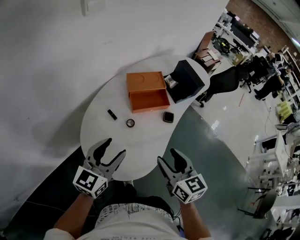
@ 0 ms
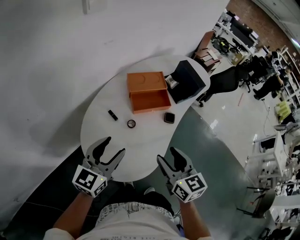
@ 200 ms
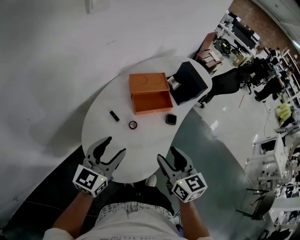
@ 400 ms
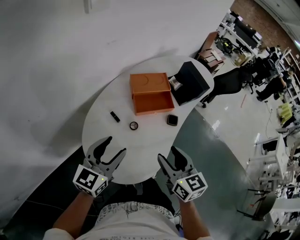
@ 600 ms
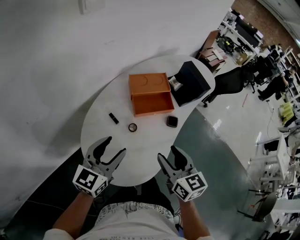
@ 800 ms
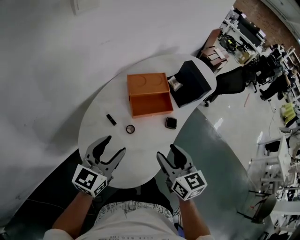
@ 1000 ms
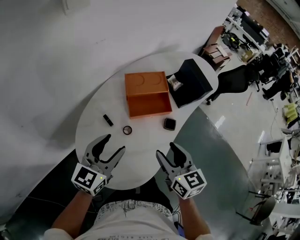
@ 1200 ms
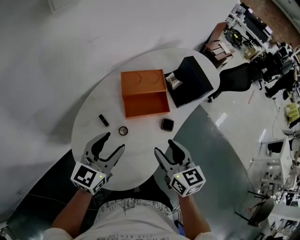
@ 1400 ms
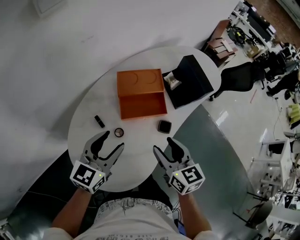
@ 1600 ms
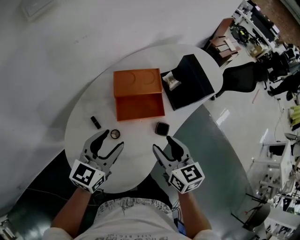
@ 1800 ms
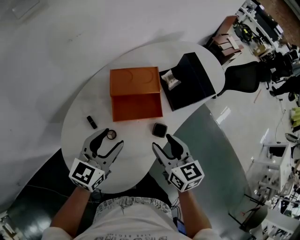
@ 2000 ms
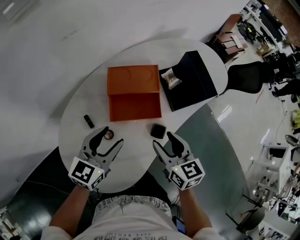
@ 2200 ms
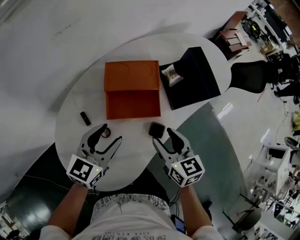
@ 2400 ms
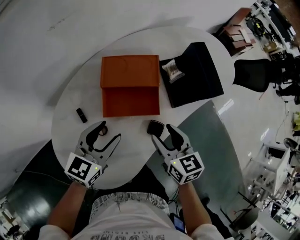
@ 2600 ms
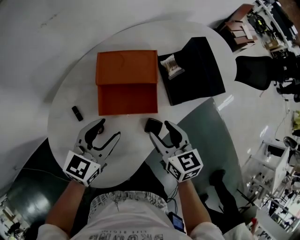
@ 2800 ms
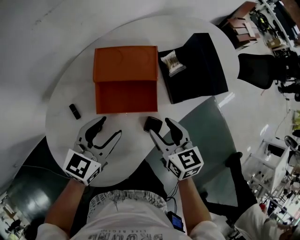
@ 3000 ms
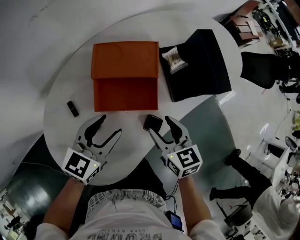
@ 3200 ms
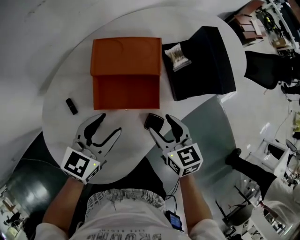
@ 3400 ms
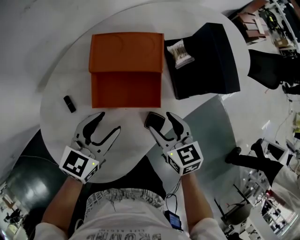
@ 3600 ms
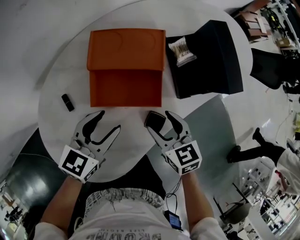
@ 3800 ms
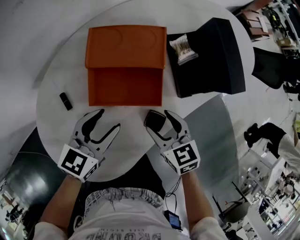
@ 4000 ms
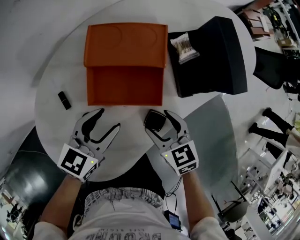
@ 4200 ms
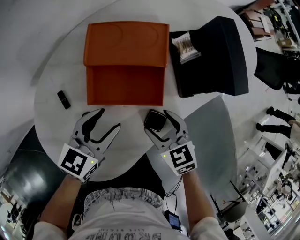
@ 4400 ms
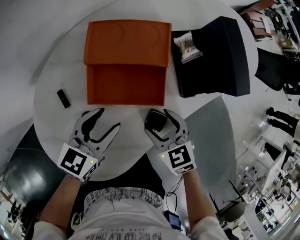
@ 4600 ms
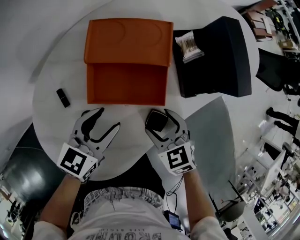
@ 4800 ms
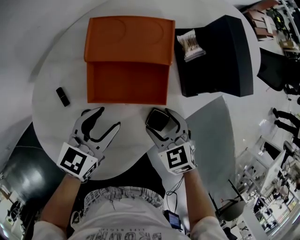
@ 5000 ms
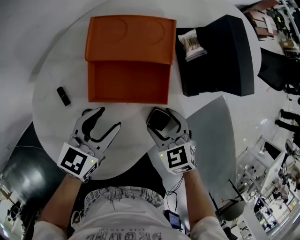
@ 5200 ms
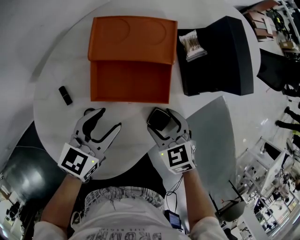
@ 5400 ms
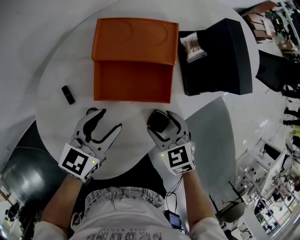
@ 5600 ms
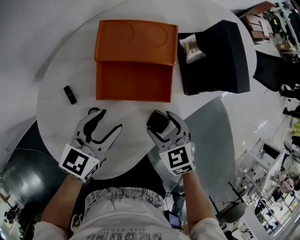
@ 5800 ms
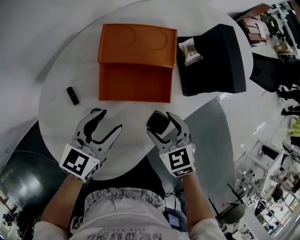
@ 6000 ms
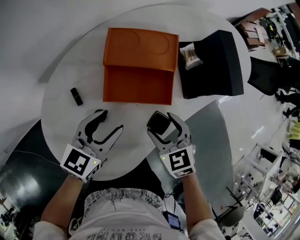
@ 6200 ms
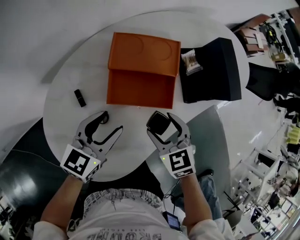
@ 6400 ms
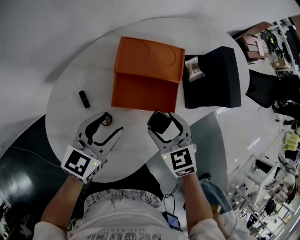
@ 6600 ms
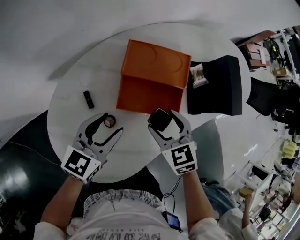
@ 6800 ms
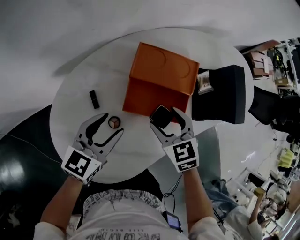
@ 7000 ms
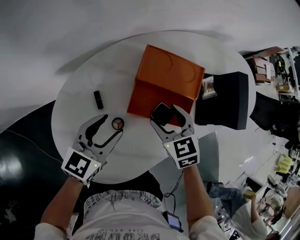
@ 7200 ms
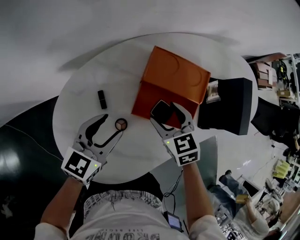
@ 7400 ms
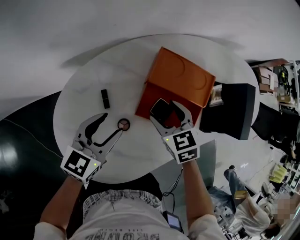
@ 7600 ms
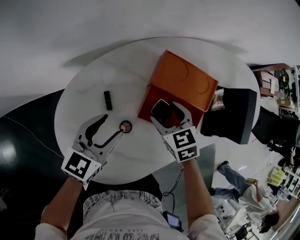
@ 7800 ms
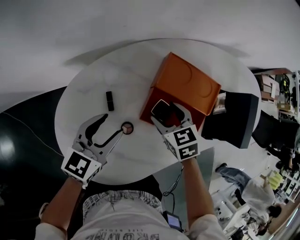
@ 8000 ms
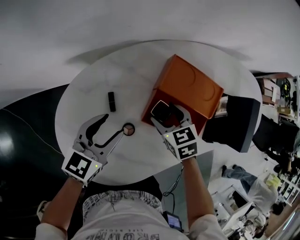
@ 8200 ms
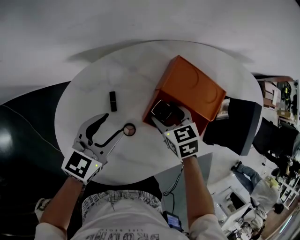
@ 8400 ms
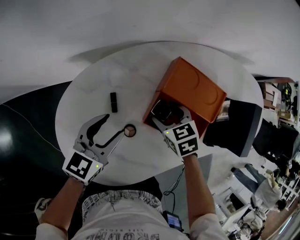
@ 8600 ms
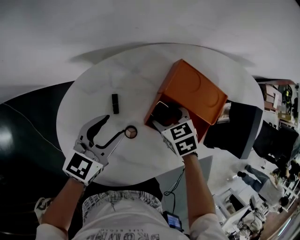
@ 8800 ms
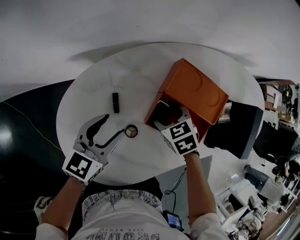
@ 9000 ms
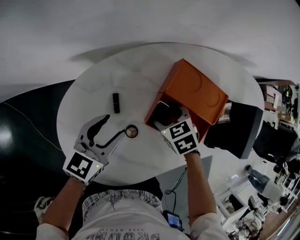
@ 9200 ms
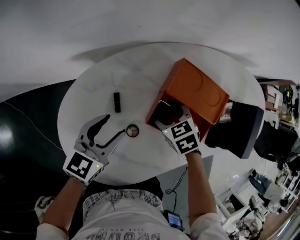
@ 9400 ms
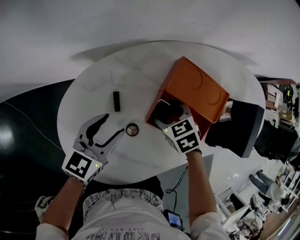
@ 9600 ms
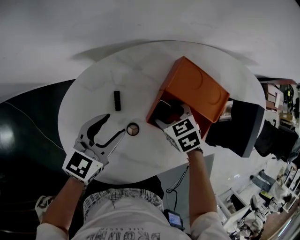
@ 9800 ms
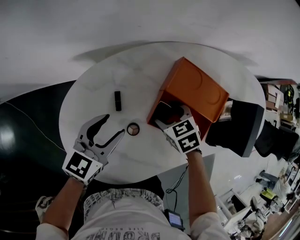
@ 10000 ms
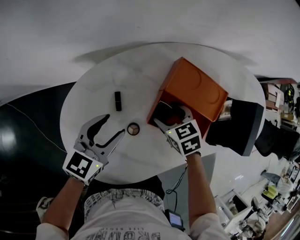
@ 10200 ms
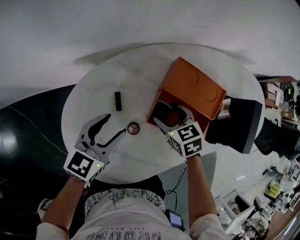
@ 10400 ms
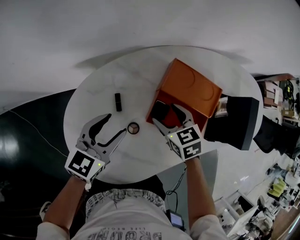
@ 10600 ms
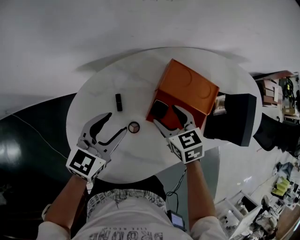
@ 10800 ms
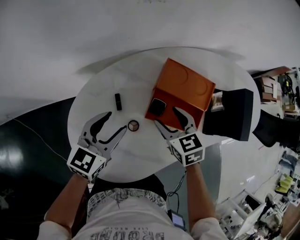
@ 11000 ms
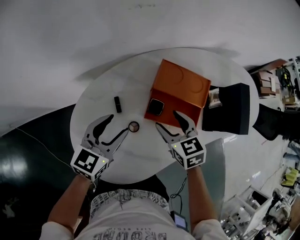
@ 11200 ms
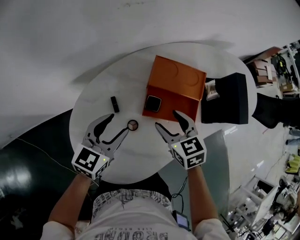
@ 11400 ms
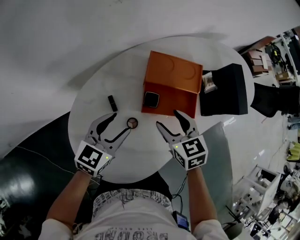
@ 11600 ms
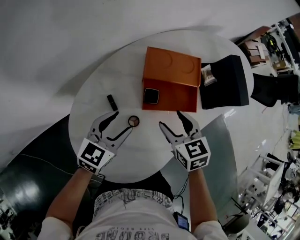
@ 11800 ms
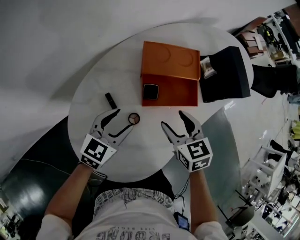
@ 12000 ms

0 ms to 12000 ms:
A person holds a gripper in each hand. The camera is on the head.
0 ms to 1600 ms: The left gripper goes about 15 cm forward and to the right; the right gripper shifts some 15 cm forward.
1600 ms to 3000 ms: The left gripper shifts about 15 cm downward, to the right and forward; the right gripper shifts some 15 cm downward, forward and to the right.
3000 ms to 4400 ms: The two grippers go about 5 cm downward. The right gripper swivels about 20 degrees.
4400 ms to 6000 ms: There are only small adjustments of the grippers.
6000 ms to 7600 ms: The left gripper travels to the left by about 10 cm. The right gripper moves forward and to the left, about 15 cm.
7600 ms to 9000 ms: The right gripper heads downward, covering about 5 cm.
9000 ms to 10400 ms: The grippers move only a little.
10400 ms to 12000 ms: The right gripper changes place by about 15 cm, and rotates some 30 degrees; the left gripper turns by about 30 degrees.

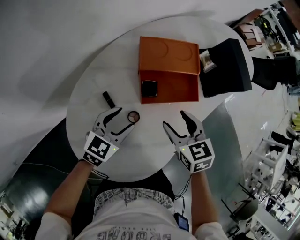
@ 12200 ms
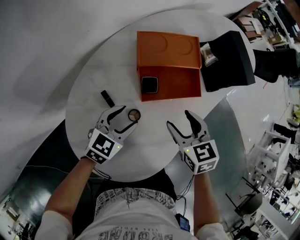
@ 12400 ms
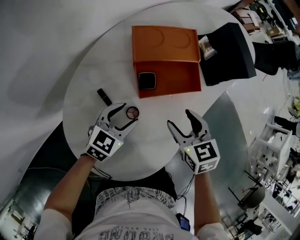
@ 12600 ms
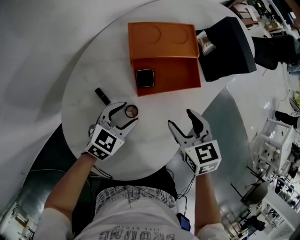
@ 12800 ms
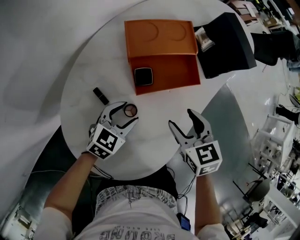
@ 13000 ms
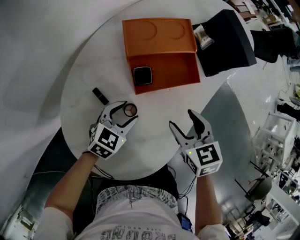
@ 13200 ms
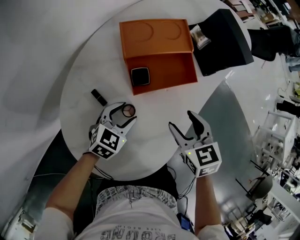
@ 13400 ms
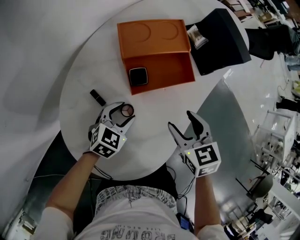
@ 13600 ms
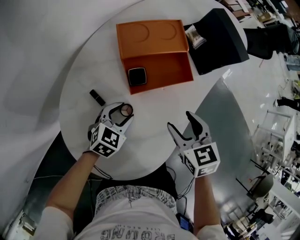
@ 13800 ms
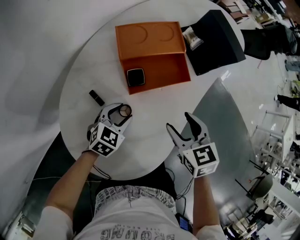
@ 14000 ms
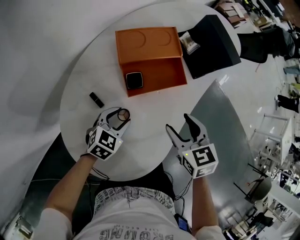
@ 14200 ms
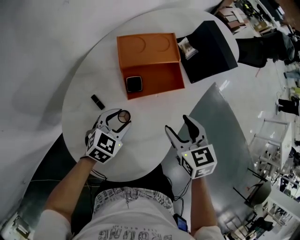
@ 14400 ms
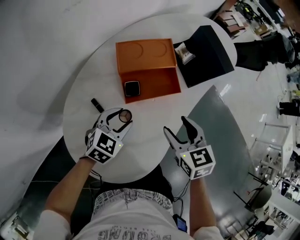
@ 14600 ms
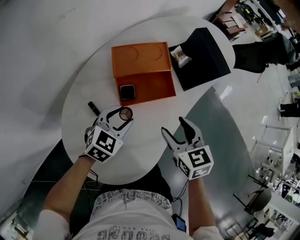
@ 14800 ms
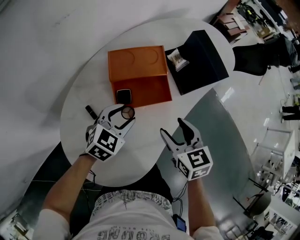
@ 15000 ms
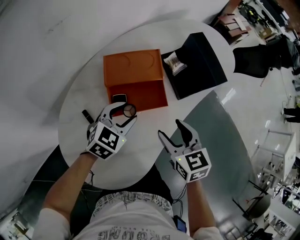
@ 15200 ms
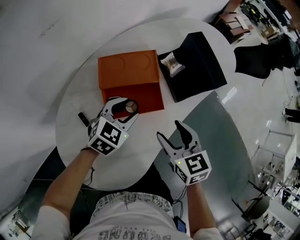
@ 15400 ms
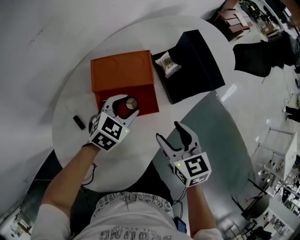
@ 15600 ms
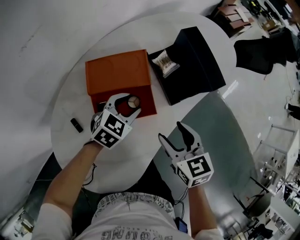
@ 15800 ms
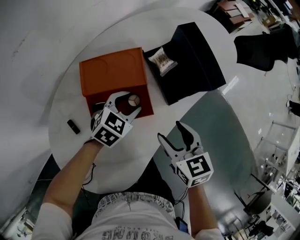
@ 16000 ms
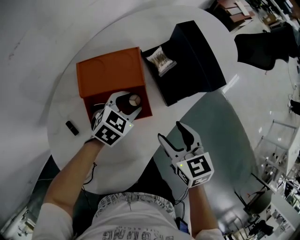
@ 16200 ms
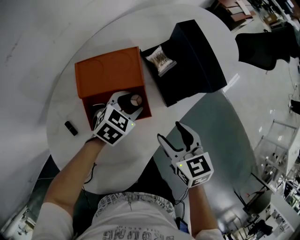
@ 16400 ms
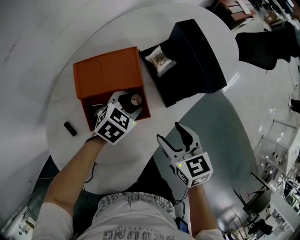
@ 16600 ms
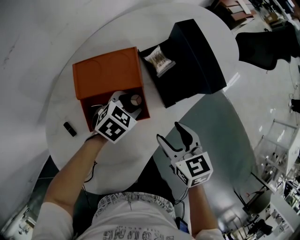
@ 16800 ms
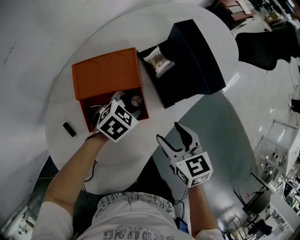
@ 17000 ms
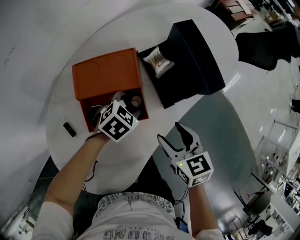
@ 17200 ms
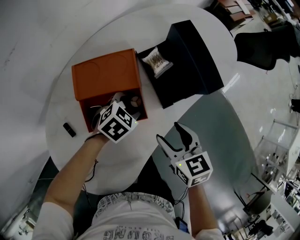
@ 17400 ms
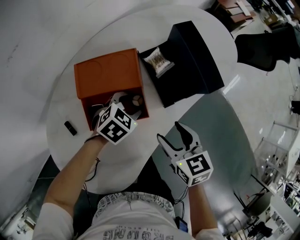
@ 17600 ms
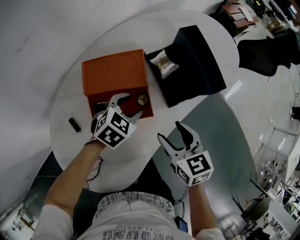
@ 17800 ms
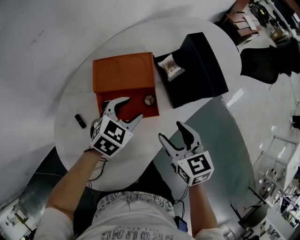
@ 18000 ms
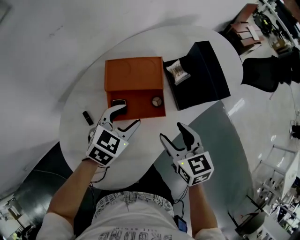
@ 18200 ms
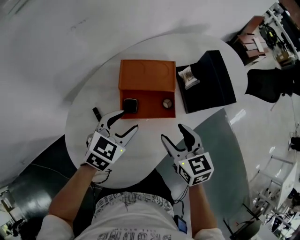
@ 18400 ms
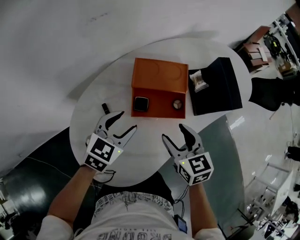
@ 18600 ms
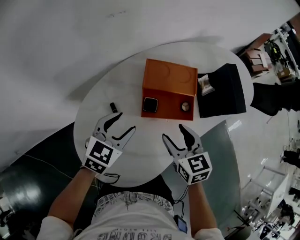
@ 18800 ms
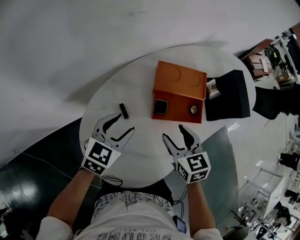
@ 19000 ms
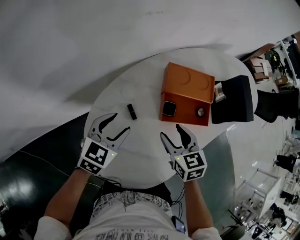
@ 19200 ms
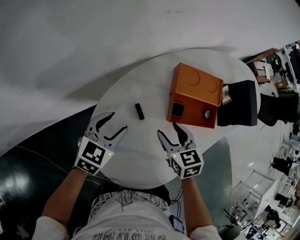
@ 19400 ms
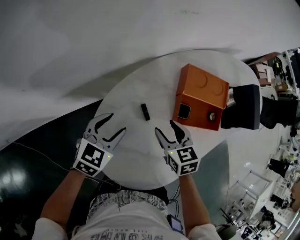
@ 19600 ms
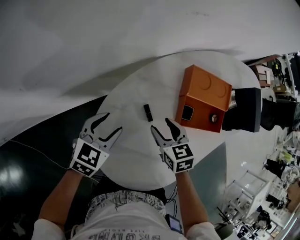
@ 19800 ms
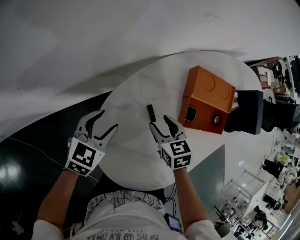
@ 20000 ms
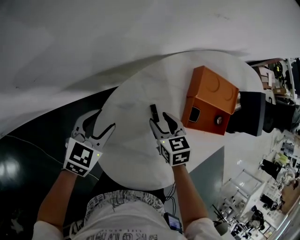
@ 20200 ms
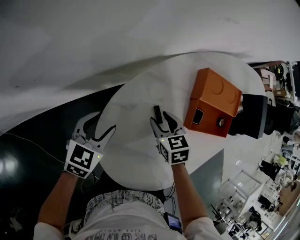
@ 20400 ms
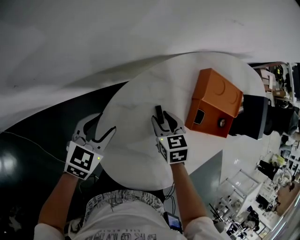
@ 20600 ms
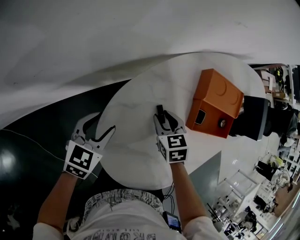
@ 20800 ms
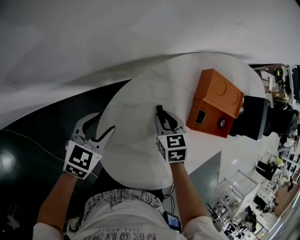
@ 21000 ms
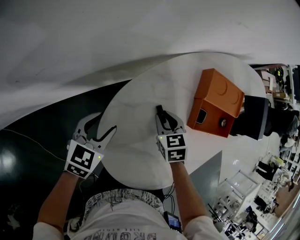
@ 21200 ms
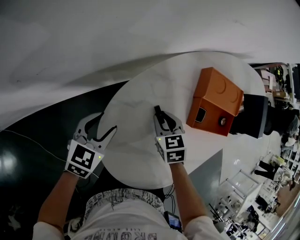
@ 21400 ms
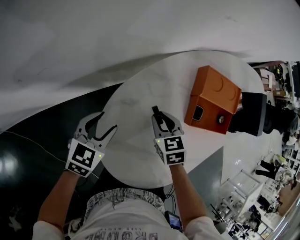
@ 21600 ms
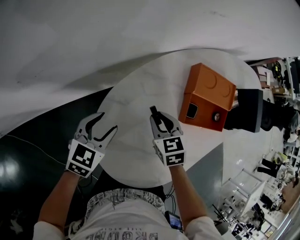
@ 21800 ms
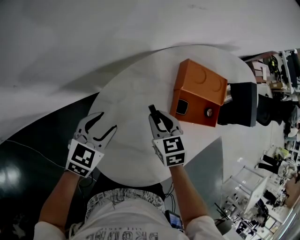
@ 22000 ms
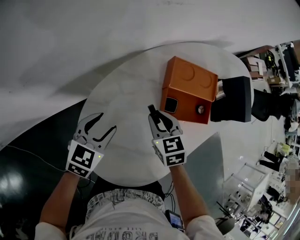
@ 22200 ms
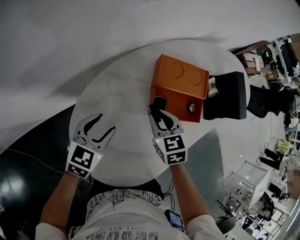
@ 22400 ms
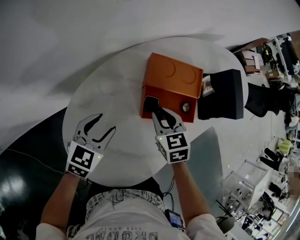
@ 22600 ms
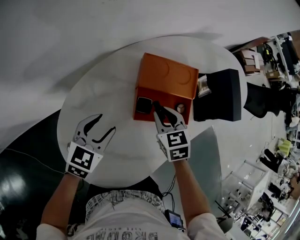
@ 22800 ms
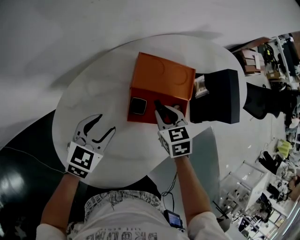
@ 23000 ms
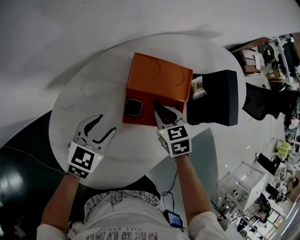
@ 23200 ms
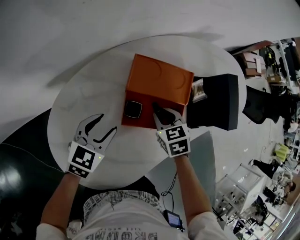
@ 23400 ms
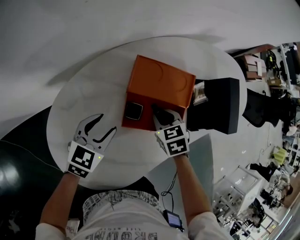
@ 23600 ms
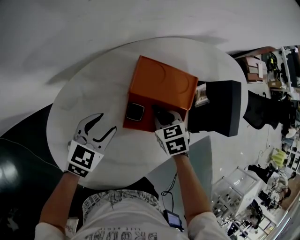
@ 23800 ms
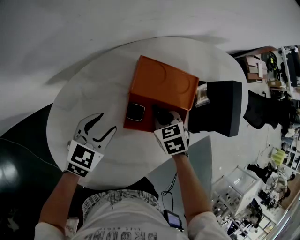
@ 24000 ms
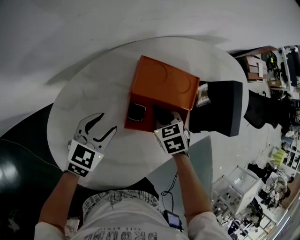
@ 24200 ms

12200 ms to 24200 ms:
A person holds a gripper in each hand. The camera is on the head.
12200 ms to 13800 ms: The left gripper travels downward by about 10 cm; the right gripper goes about 5 cm to the right.
13800 ms to 15200 ms: The left gripper travels upward, forward and to the right by about 15 cm; the right gripper heads forward, upward and to the right, covering roughly 10 cm.
15200 ms to 16600 ms: The right gripper shifts roughly 10 cm to the right and downward. Meanwhile the left gripper moves forward, downward and to the right, some 15 cm.
16600 ms to 18200 ms: The left gripper heads upward, backward and to the left, covering about 15 cm. The right gripper travels upward by about 5 cm.
18200 ms to 19800 ms: The two grippers go some 35 cm to the left.
19800 ms to 21200 ms: The right gripper goes some 5 cm downward, and closes up, while the left gripper moves to the left, about 5 cm.
21200 ms to 22600 ms: The right gripper heads to the right and upward, covering approximately 20 cm. Meanwhile the left gripper shifts roughly 20 cm to the right.
22600 ms to 24200 ms: The left gripper shifts some 5 cm to the right. Meanwhile the right gripper is displaced downward and to the right by about 10 cm, and swivels roughly 20 degrees.
